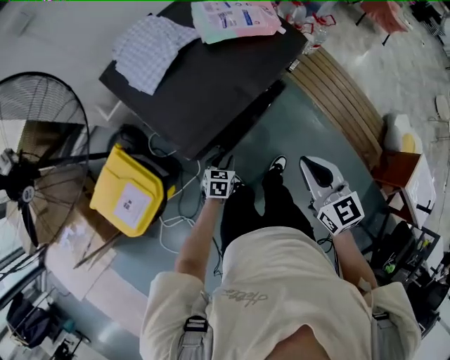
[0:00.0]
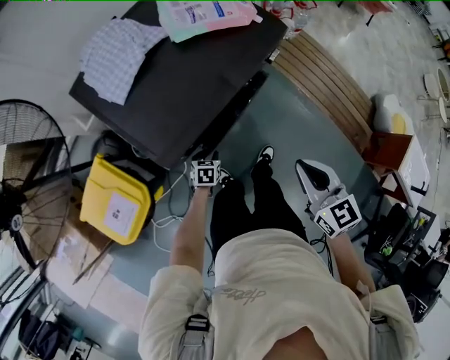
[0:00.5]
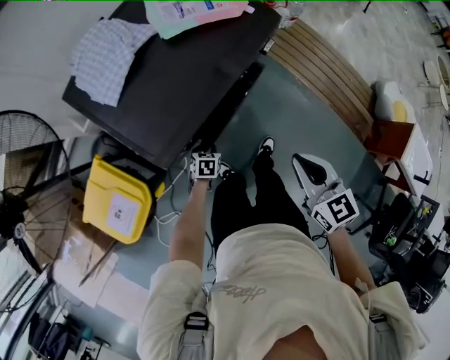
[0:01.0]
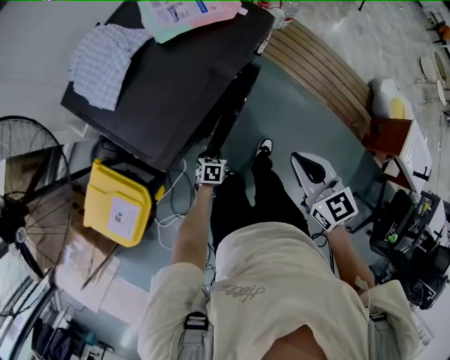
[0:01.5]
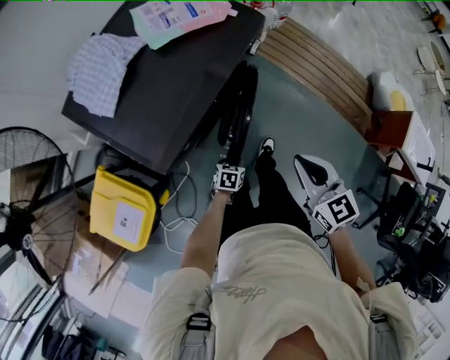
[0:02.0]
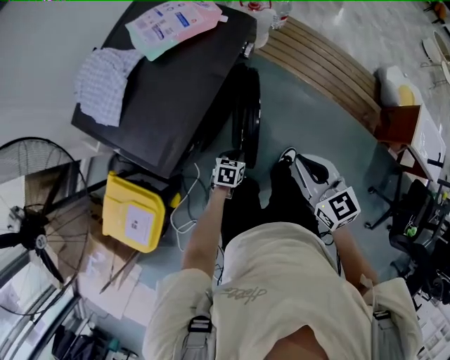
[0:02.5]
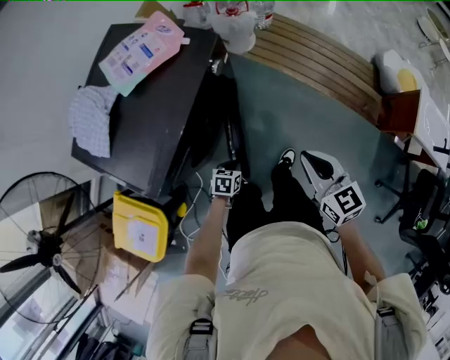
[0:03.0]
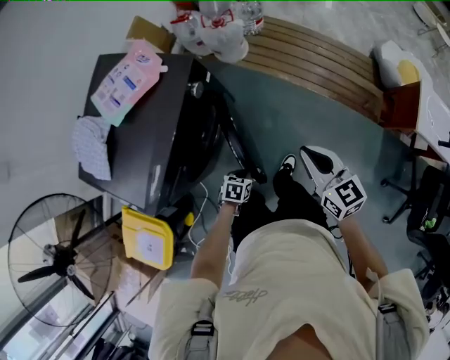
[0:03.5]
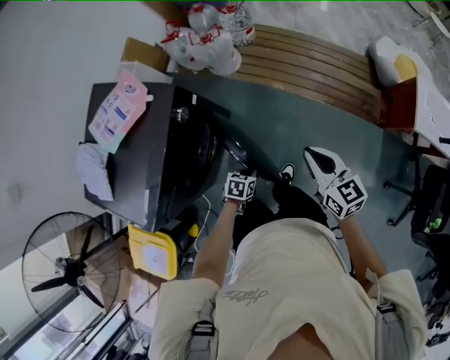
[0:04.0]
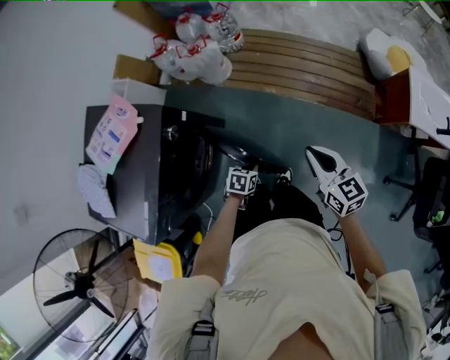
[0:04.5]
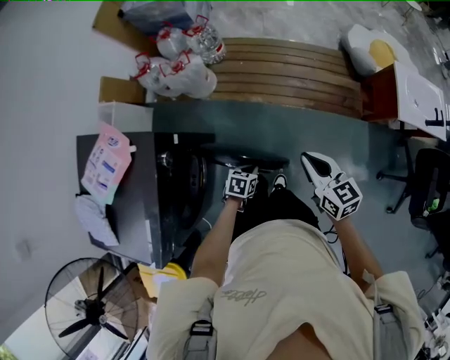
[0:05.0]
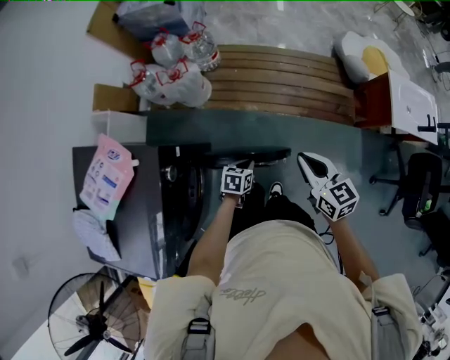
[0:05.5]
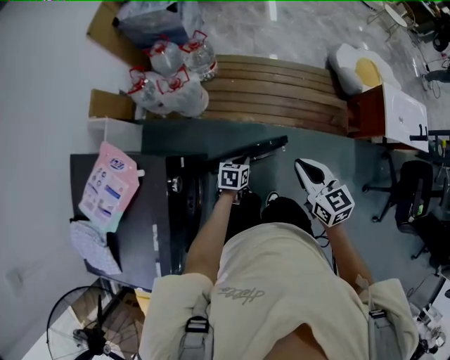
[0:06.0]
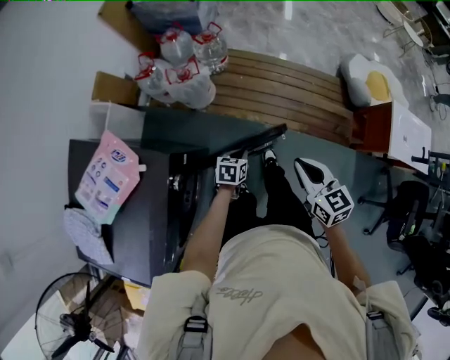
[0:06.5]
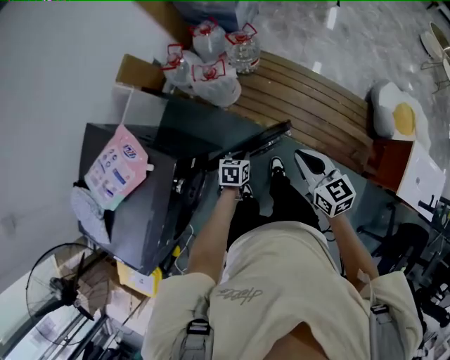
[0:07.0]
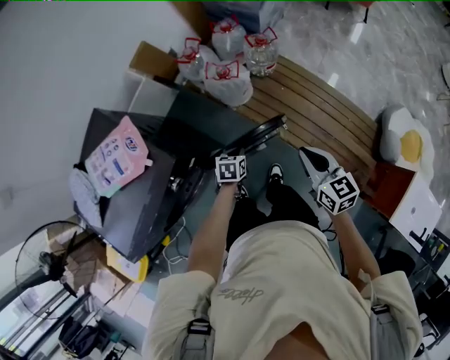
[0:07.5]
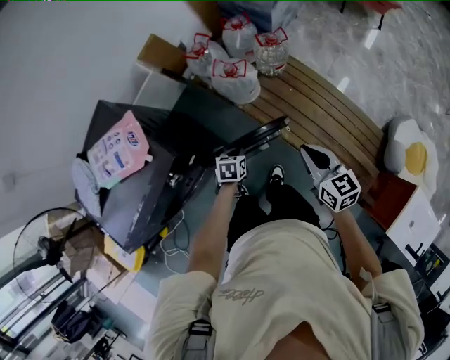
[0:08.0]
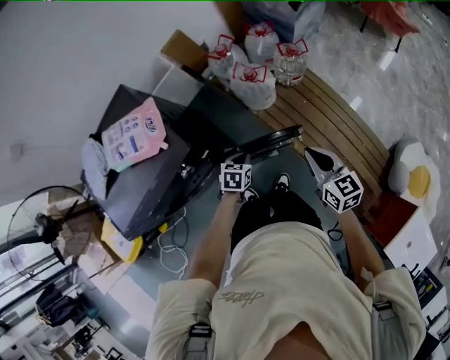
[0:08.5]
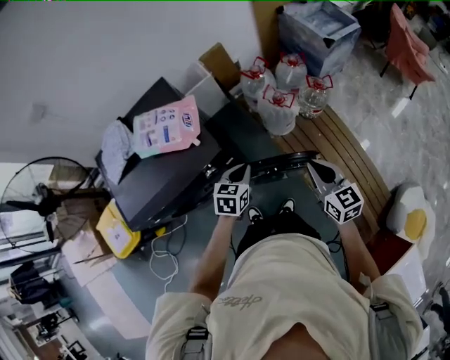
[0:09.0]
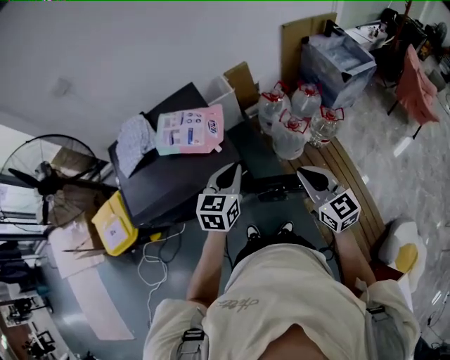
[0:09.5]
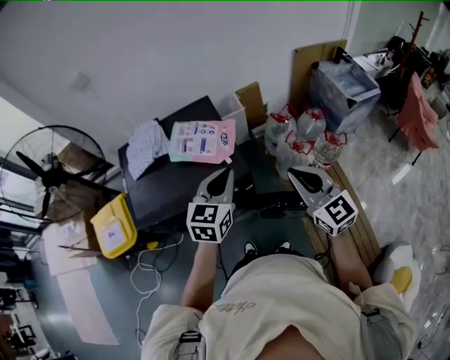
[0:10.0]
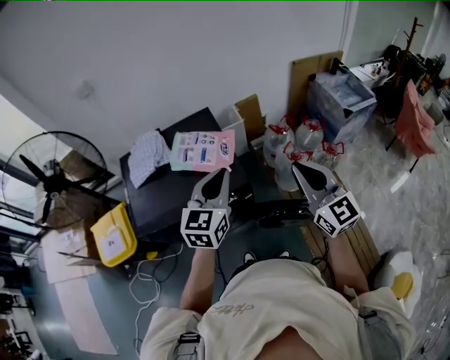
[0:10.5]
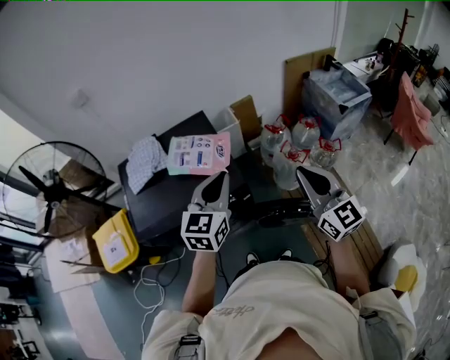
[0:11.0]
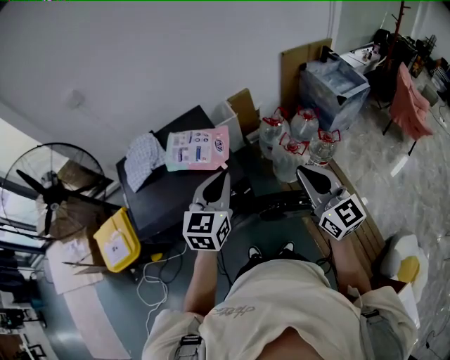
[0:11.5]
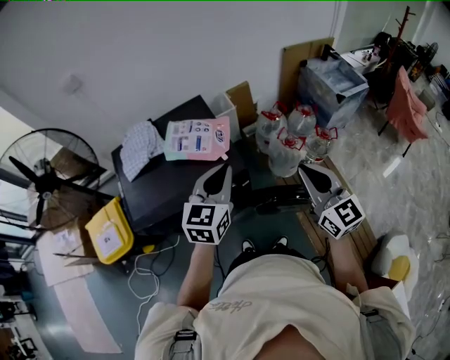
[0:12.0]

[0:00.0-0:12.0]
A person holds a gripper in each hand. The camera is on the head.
0:00.0 to 0:02.0: The left gripper travels to the right and downward by approximately 15 cm, and swivels about 20 degrees. Meanwhile the right gripper changes place by some 5 cm.
0:02.0 to 0:04.0: Both grippers move to the right and forward, about 25 cm. The right gripper rotates roughly 20 degrees.
0:04.0 to 0:06.0: The right gripper goes approximately 15 cm forward, while the left gripper shifts approximately 25 cm forward.
0:06.0 to 0:08.0: The right gripper moves approximately 25 cm, and swivels approximately 30 degrees; the left gripper changes place by some 15 cm, and rotates about 40 degrees.
0:08.0 to 0:10.0: The left gripper moves upward, approximately 40 cm, and tips its fingers upward by some 40 degrees. The right gripper moves roughly 35 cm, and swivels approximately 50 degrees.

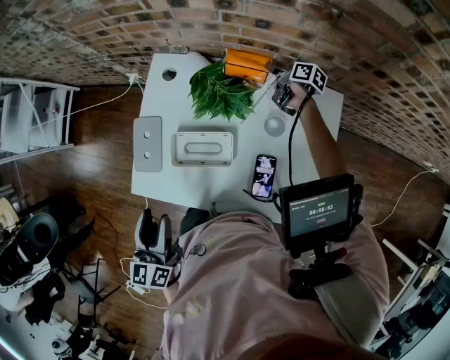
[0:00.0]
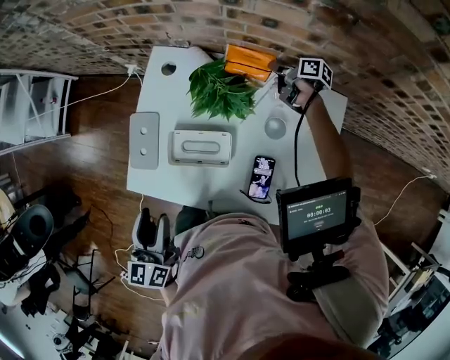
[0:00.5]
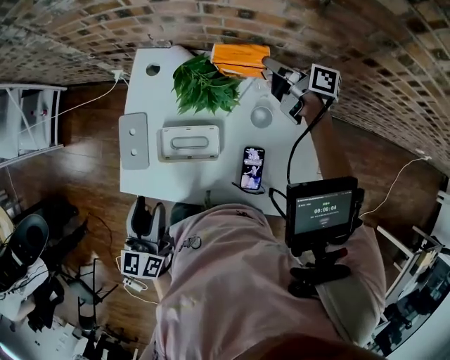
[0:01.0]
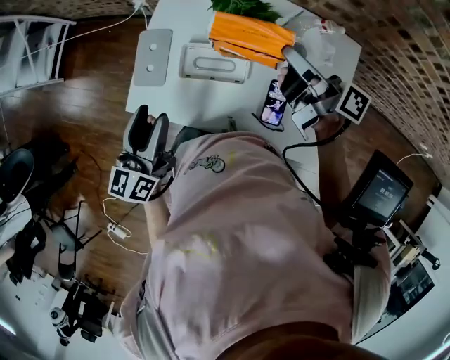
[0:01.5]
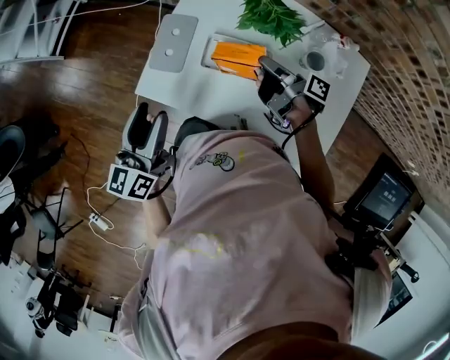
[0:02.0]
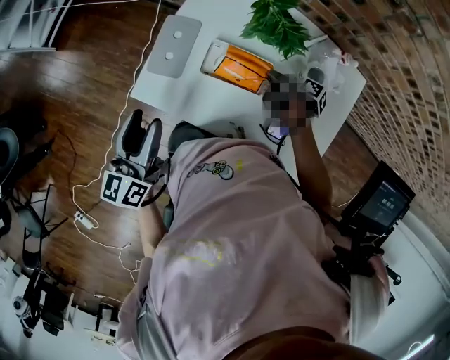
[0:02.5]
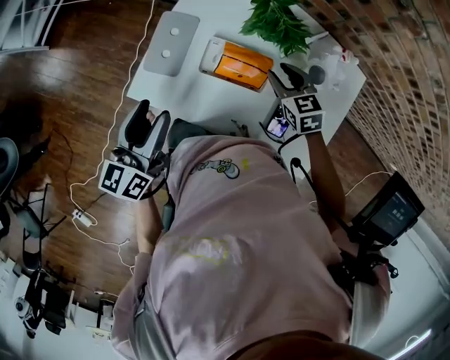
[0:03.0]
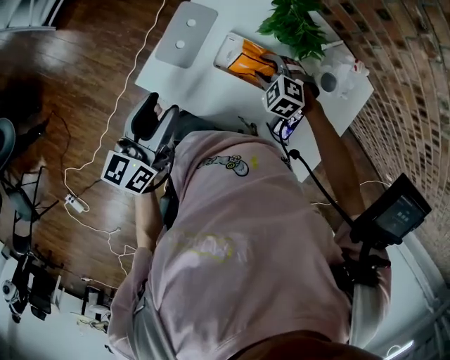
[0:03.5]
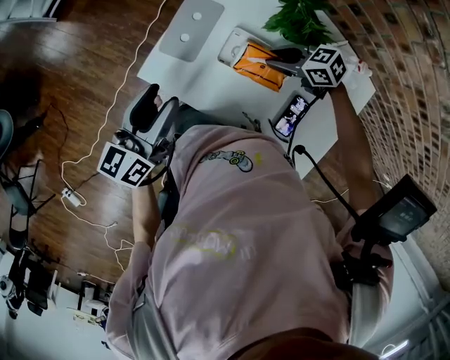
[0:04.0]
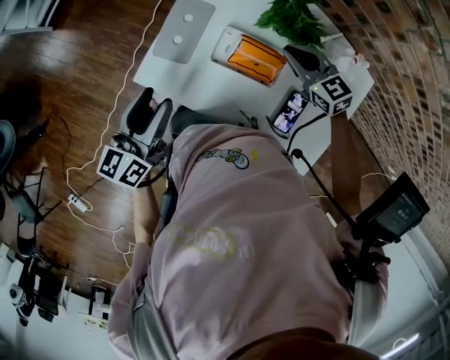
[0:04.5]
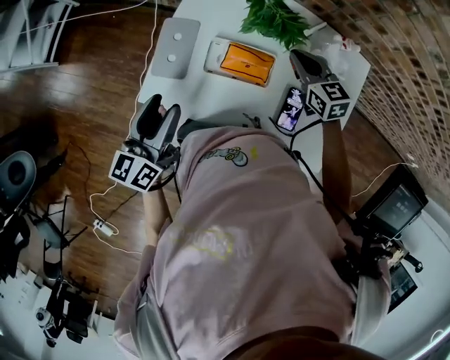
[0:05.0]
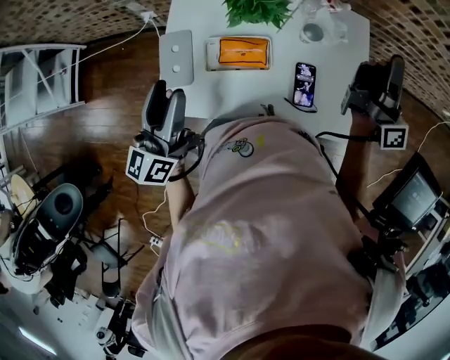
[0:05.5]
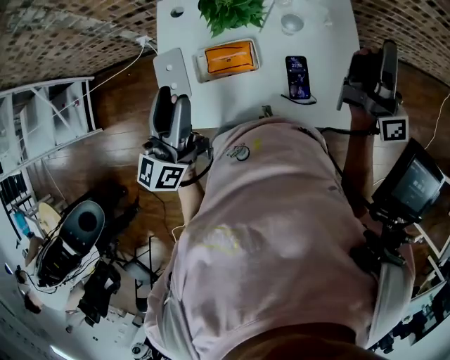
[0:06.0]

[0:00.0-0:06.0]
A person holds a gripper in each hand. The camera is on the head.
0:00.0 to 0:02.0: The right gripper moves to the left and backward, about 35 cm, rotates about 30 degrees, and closes up. Meanwhile the left gripper heads to the left, covering approximately 10 cm.
0:02.0 to 0:04.0: The right gripper swings up and down, roughly 10 cm each way, with 3 reversals, and points its fingers about 30 degrees further downward, while the left gripper changes place by some 5 cm.
0:04.0 to 0:06.0: The left gripper ends up some 20 cm from where it was, and rotates some 30 degrees. Meanwhile the right gripper shifts by some 50 cm, tilts its fingers some 80 degrees upward, and closes up.

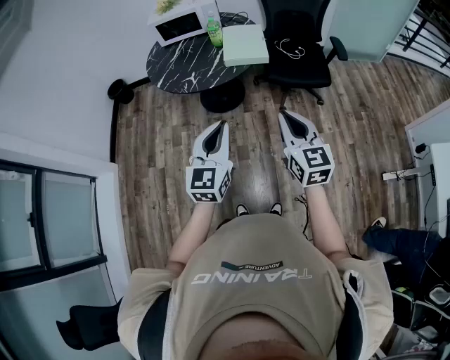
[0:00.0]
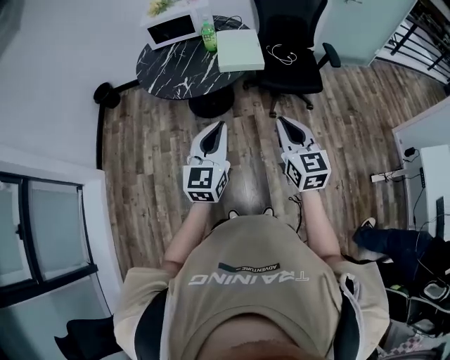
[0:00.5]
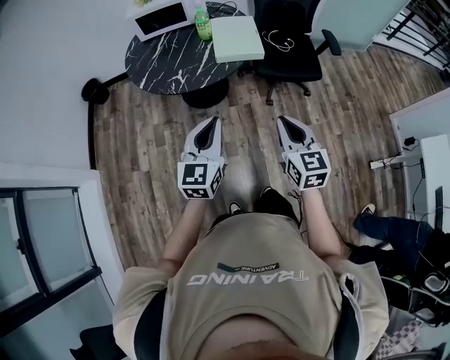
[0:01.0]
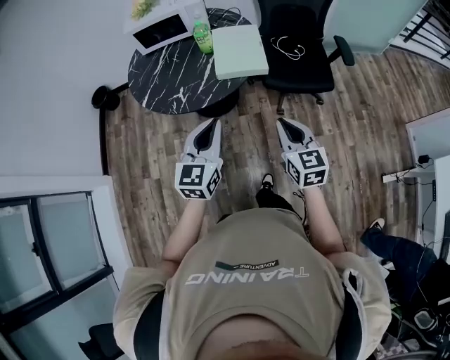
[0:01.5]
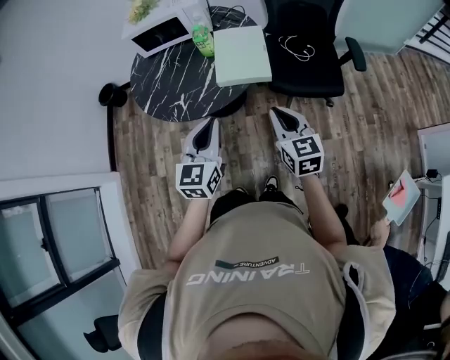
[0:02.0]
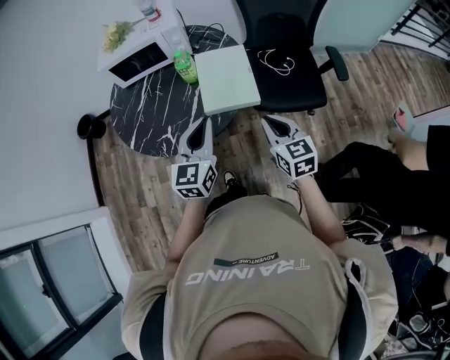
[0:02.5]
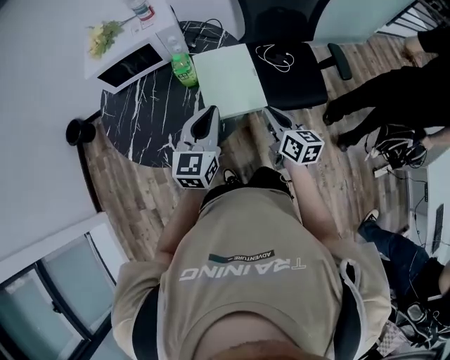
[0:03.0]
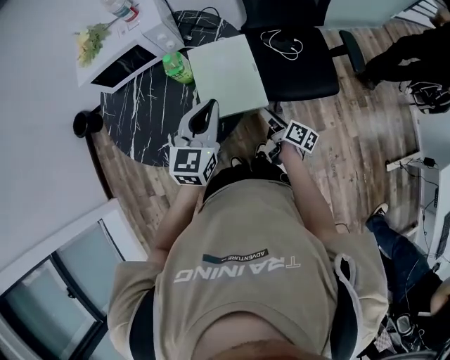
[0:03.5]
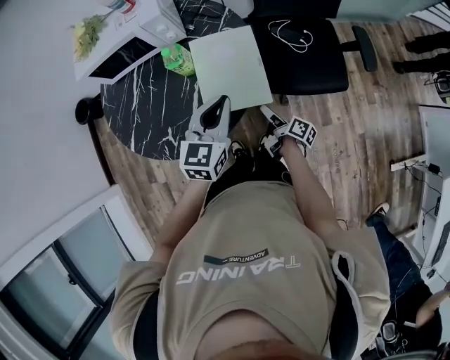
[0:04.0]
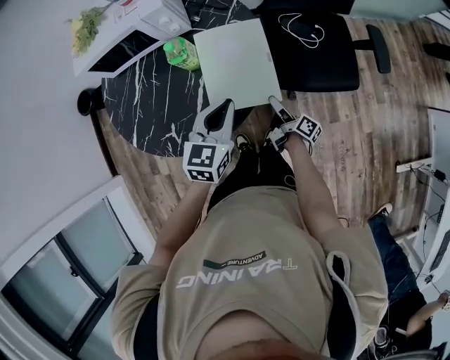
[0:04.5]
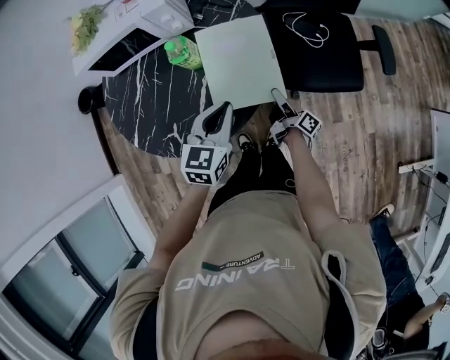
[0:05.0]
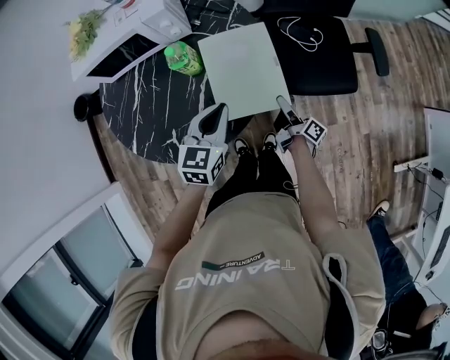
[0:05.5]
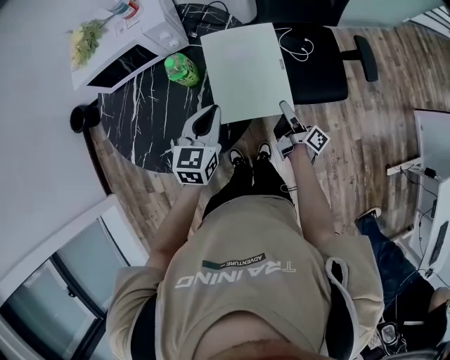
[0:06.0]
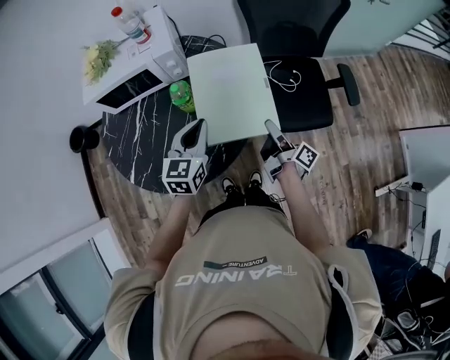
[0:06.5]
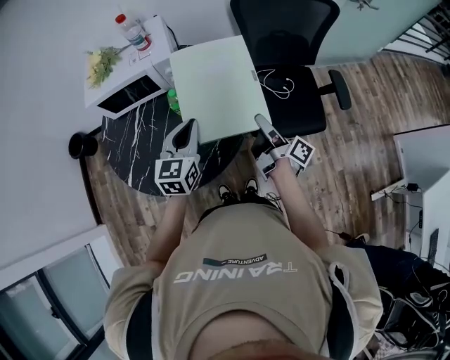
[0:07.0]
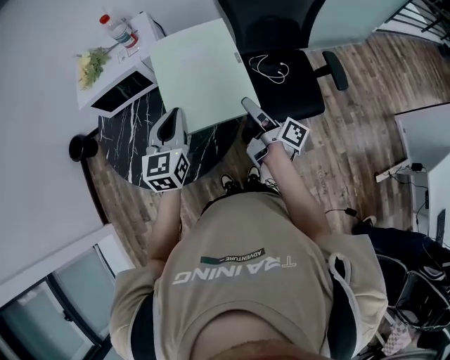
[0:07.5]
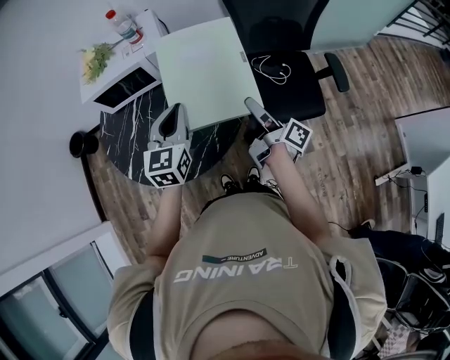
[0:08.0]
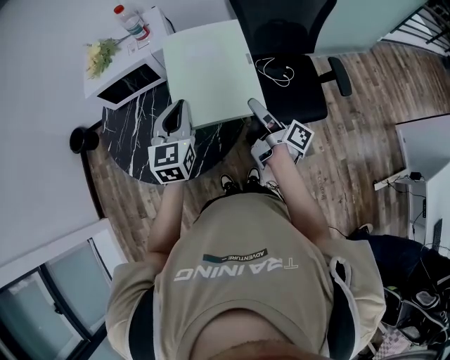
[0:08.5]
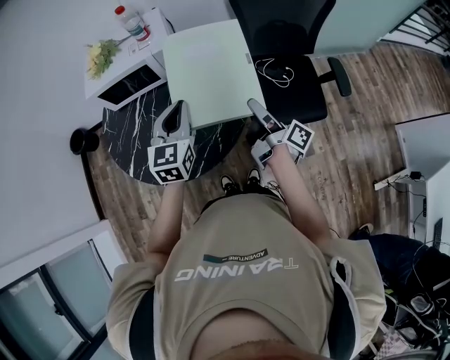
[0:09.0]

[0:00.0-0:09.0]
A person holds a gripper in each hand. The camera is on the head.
0:00.0 to 0:02.0: Both grippers move forward, some 25 cm.
0:02.0 to 0:04.5: The left gripper moves forward and downward, approximately 30 cm, and rotates about 20 degrees; the right gripper is displaced downward and forward by approximately 40 cm, rotates around the line of its fingers by some 80 degrees, clockwise from behind, and opens up.
0:04.5 to 0:07.0: The right gripper heads upward, covering approximately 25 cm; the left gripper travels upward and to the left by roughly 10 cm.
0:07.0 to 0:09.0: There are only small adjustments of the grippers.
